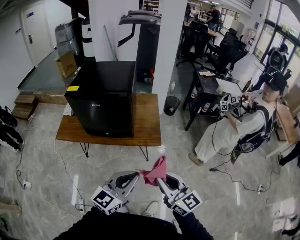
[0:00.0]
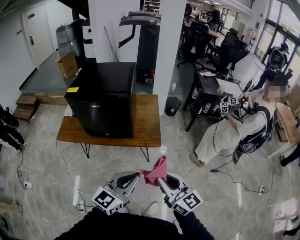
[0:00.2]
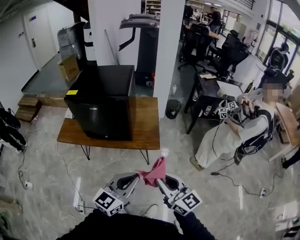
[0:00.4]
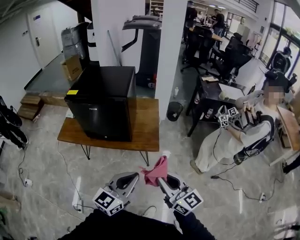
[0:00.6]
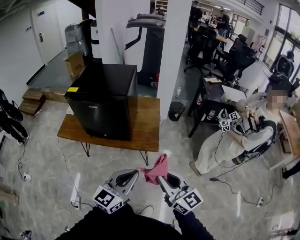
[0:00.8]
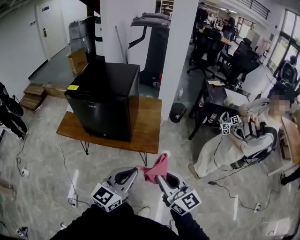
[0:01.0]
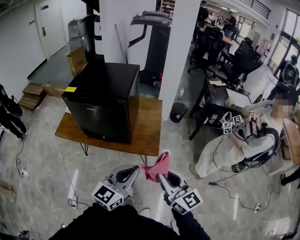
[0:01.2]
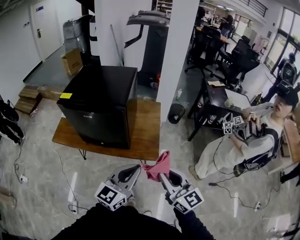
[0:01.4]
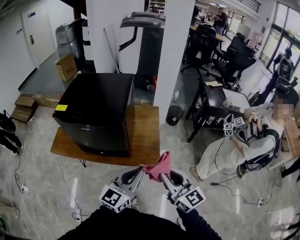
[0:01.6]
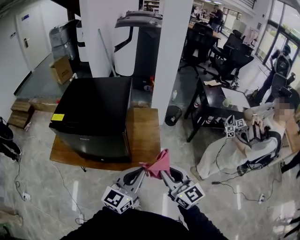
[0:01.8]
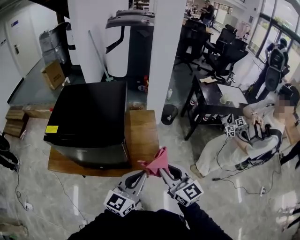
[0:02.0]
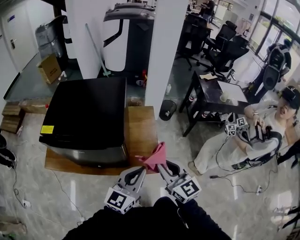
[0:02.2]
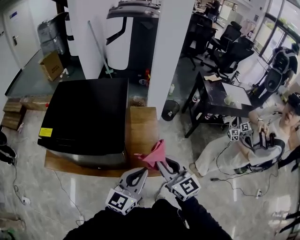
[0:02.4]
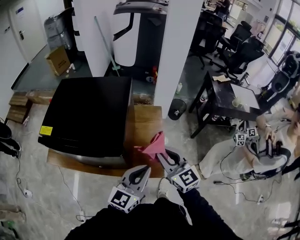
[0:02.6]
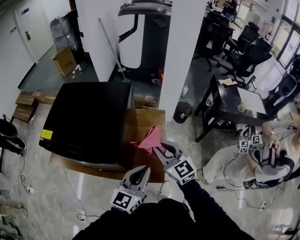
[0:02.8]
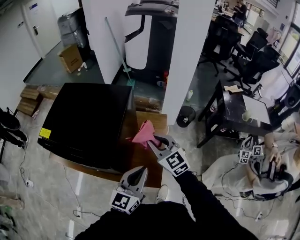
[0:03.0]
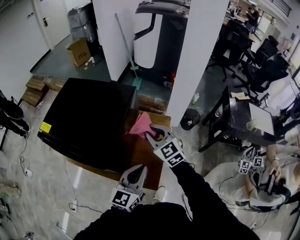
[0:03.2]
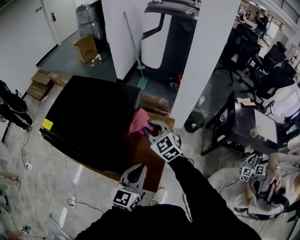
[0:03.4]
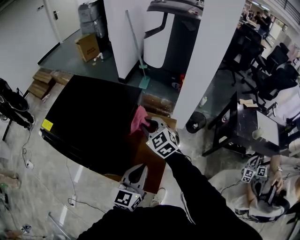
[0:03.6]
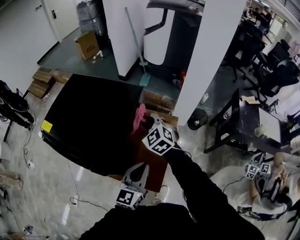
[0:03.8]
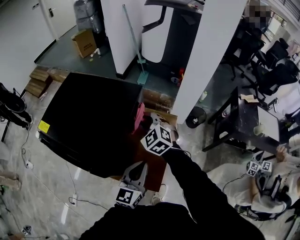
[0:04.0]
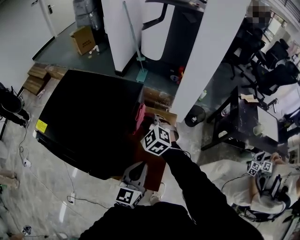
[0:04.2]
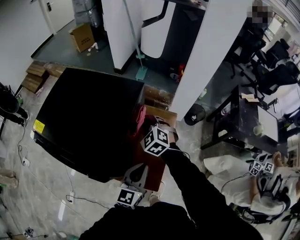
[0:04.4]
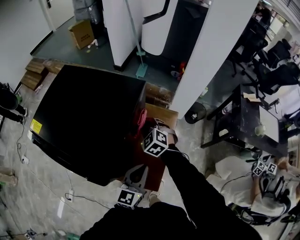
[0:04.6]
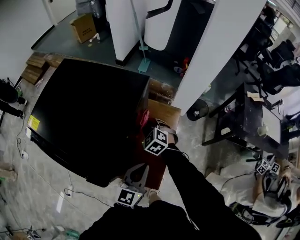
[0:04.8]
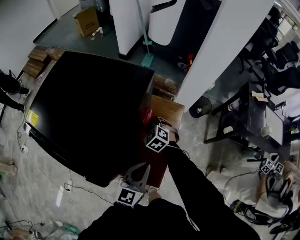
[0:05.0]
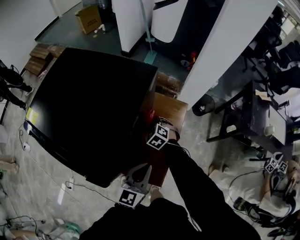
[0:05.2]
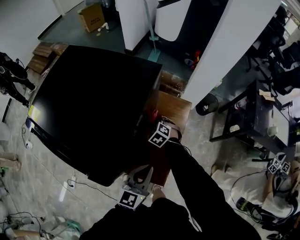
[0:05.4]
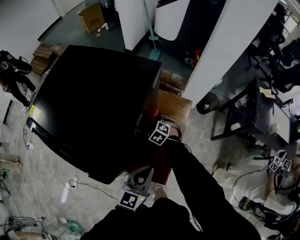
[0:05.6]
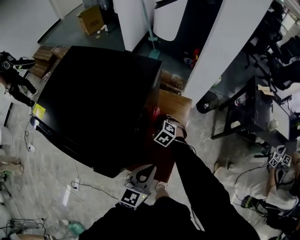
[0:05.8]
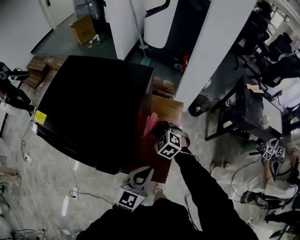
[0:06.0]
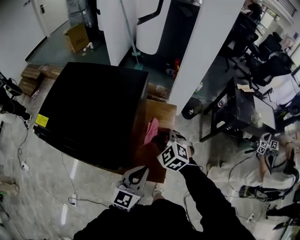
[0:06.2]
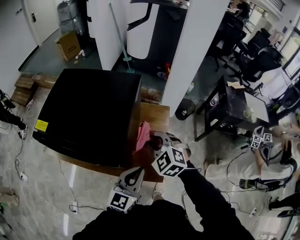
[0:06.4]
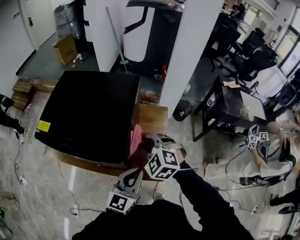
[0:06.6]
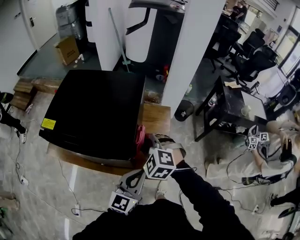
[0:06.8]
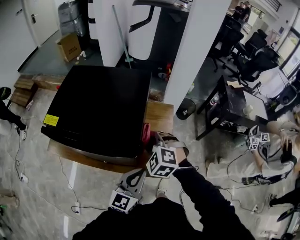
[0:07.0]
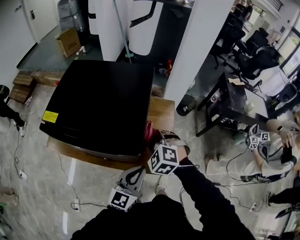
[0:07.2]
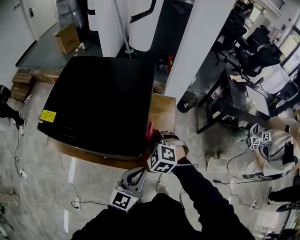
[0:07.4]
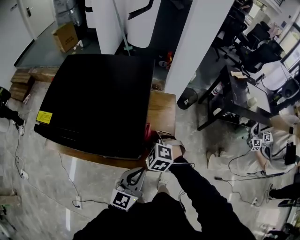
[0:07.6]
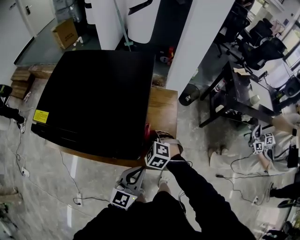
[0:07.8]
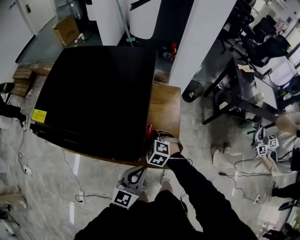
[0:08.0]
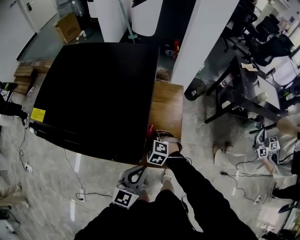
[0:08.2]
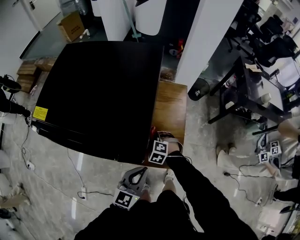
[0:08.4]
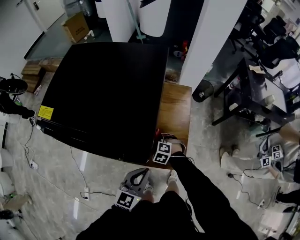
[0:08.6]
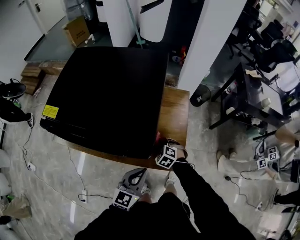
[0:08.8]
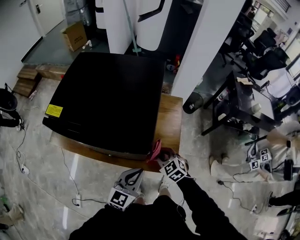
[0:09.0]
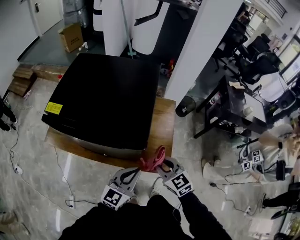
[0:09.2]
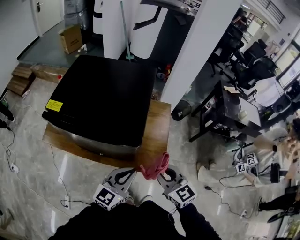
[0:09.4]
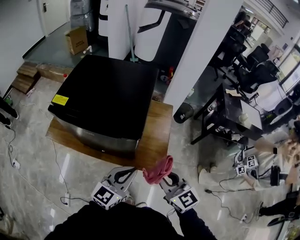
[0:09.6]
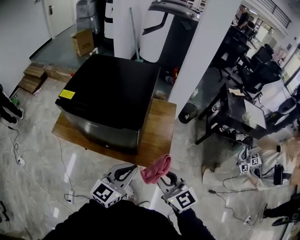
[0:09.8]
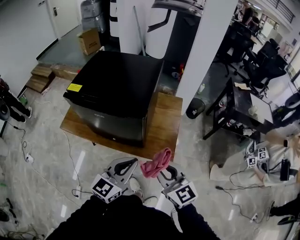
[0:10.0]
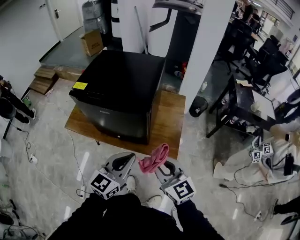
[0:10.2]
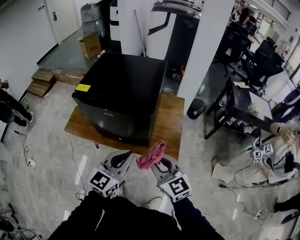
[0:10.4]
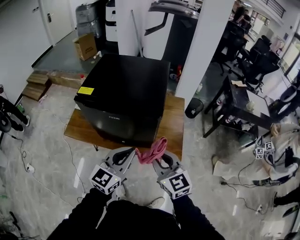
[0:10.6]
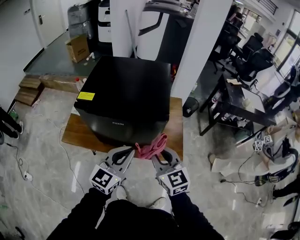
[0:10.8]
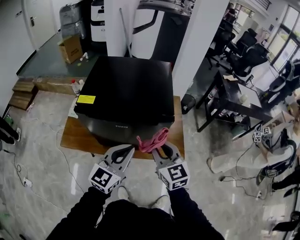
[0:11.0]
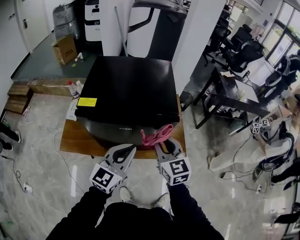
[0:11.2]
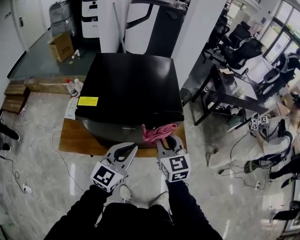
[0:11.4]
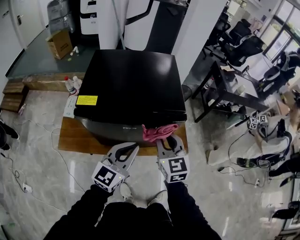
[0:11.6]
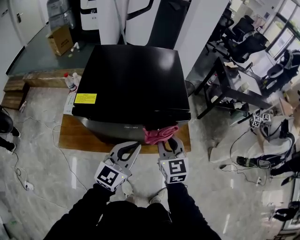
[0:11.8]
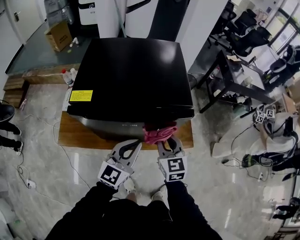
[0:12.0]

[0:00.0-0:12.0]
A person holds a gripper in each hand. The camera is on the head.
0:00.0 to 0:01.6: Both grippers travel together forward, about 20 cm.
0:01.6 to 0:03.0: The right gripper heads forward, covering roughly 40 cm, and turns by roughly 30 degrees, while the left gripper goes about 25 cm forward.
0:03.0 to 0:04.4: The left gripper travels downward and forward by about 15 cm. The right gripper moves forward and downward, approximately 20 cm, and turns by about 30 degrees.
0:04.4 to 0:06.0: The right gripper travels downward and backward by approximately 10 cm, while the left gripper moves backward, approximately 5 cm.
0:06.0 to 0:07.6: The right gripper goes roughly 15 cm backward and to the left, and reaches roughly 15 cm upward, then returns. Meanwhile the left gripper travels to the left and backward by roughly 10 cm.
0:07.6 to 0:09.0: The right gripper travels backward by approximately 5 cm, goes downward and returns, some 20 cm each way, and turns by some 30 degrees.
0:09.0 to 0:10.4: The left gripper moves upward and backward, roughly 20 cm. The right gripper heads upward and backward, covering roughly 35 cm, and tips its fingers upward by some 30 degrees.
0:10.4 to 0:12.0: The two grippers go some 20 cm to the left, forward and downward. The right gripper rotates some 30 degrees.

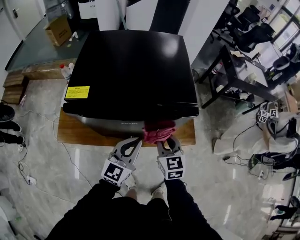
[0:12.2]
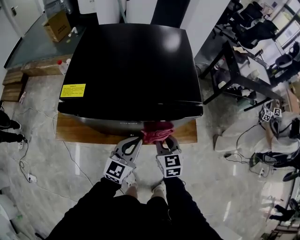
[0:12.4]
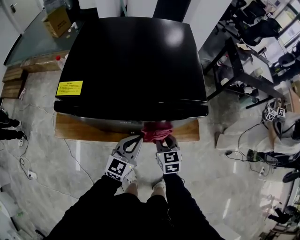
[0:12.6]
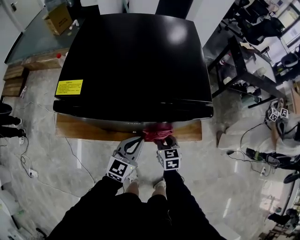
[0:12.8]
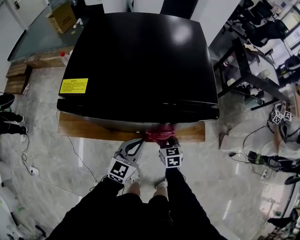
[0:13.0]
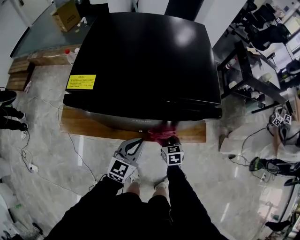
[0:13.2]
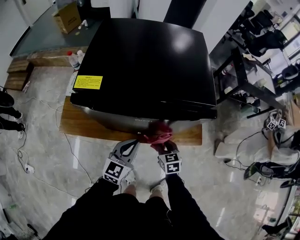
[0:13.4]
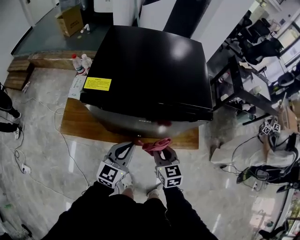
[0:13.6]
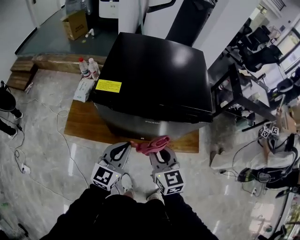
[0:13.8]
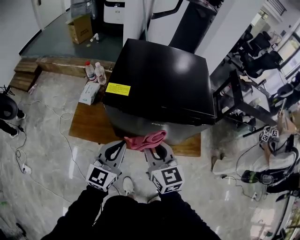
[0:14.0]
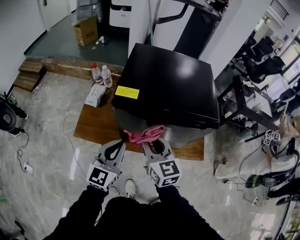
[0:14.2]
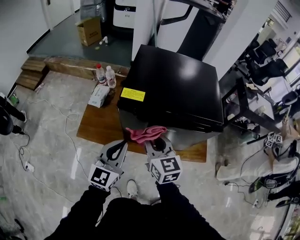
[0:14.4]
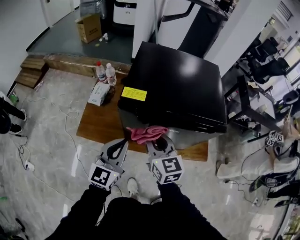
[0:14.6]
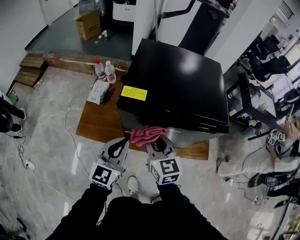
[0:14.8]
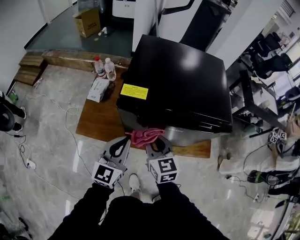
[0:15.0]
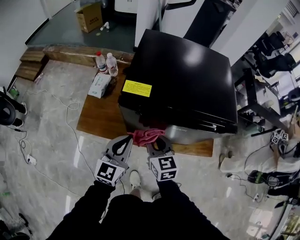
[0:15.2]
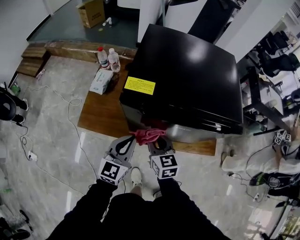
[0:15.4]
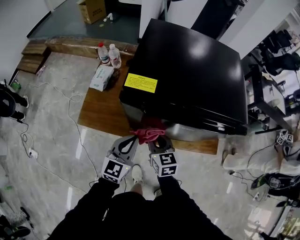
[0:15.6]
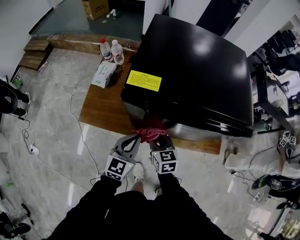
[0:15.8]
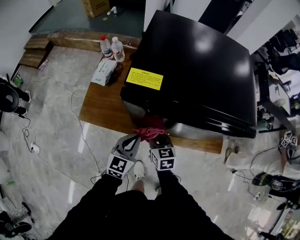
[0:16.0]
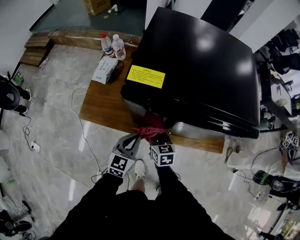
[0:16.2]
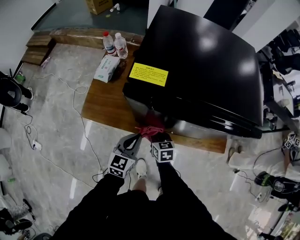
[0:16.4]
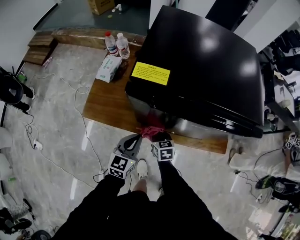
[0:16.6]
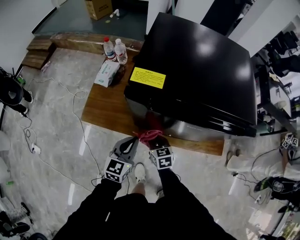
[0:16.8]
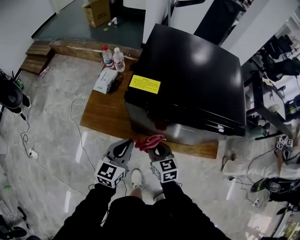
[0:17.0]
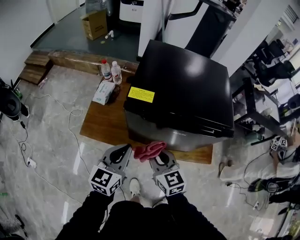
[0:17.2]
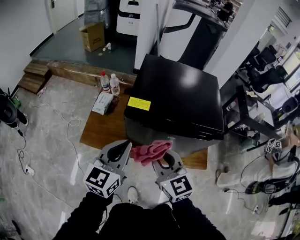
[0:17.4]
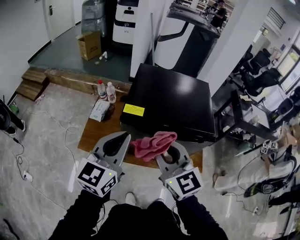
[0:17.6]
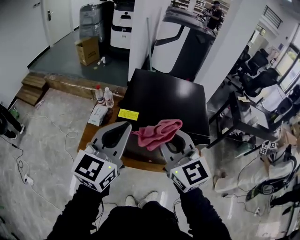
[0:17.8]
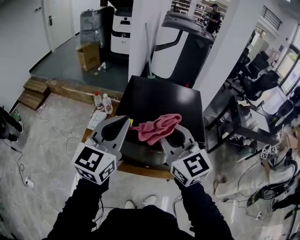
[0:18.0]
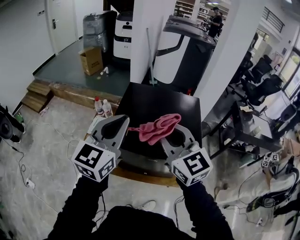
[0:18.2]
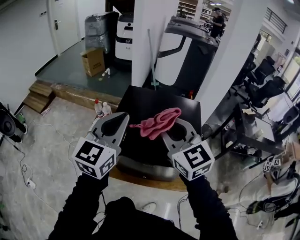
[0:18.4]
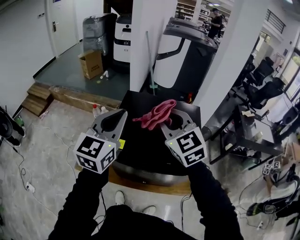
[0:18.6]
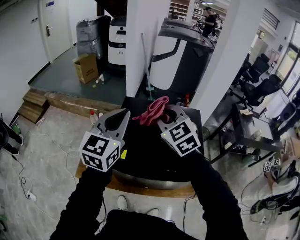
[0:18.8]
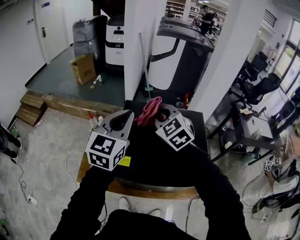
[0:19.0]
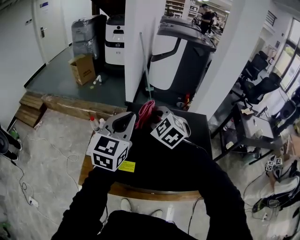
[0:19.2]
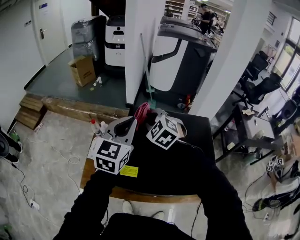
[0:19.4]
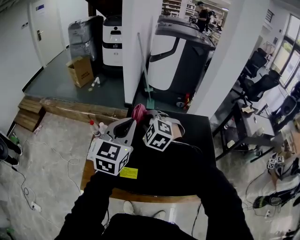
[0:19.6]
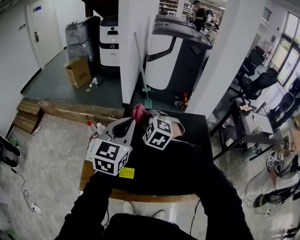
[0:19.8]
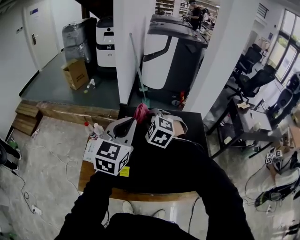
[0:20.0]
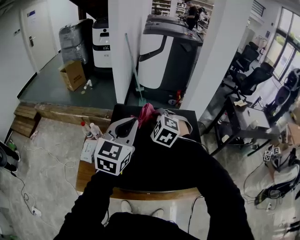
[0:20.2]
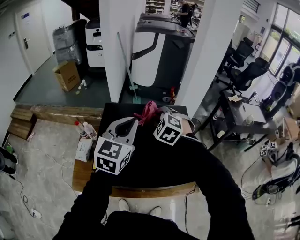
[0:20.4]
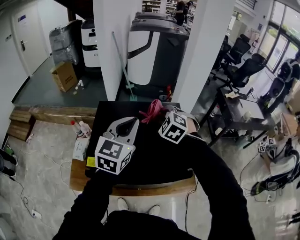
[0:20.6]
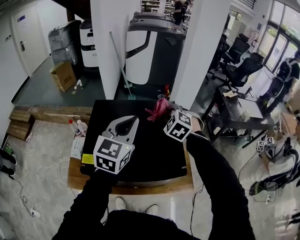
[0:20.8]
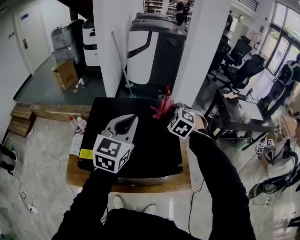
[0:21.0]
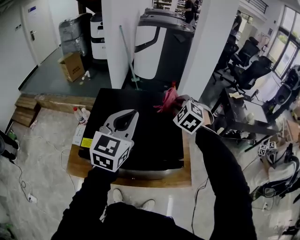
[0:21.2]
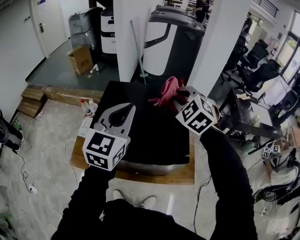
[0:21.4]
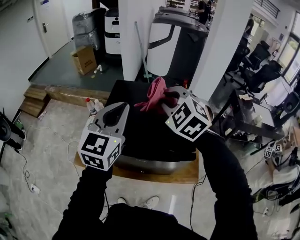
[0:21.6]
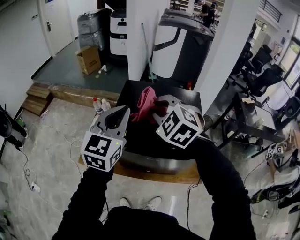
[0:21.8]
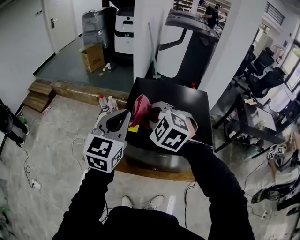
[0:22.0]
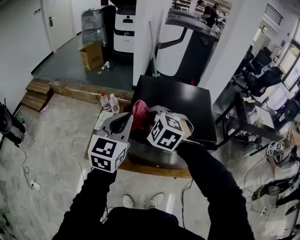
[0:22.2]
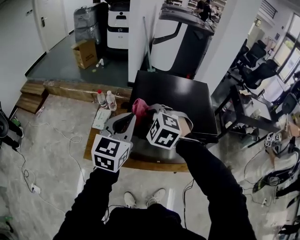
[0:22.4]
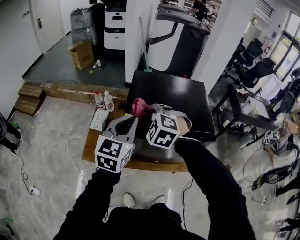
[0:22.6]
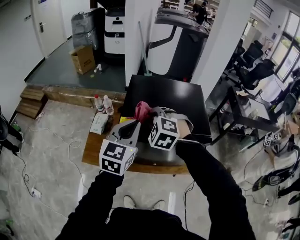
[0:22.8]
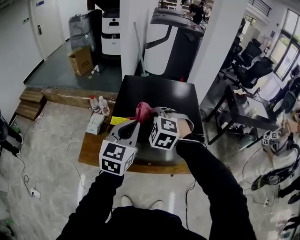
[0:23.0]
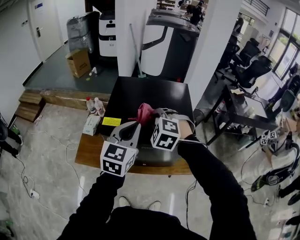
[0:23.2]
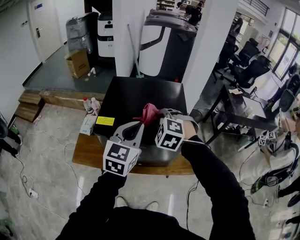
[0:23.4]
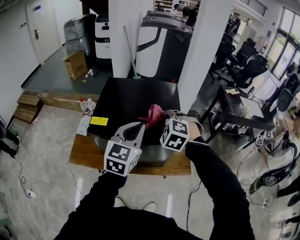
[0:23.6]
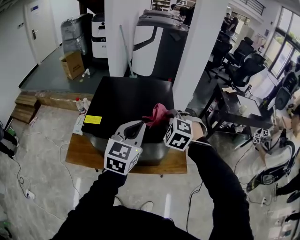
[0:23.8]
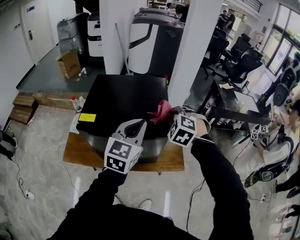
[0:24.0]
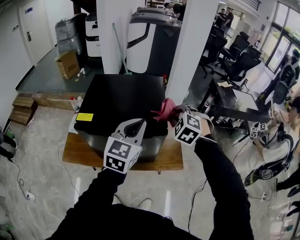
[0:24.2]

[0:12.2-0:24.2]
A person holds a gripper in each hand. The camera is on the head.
0:12.2 to 0:13.8: The two grippers go about 15 cm to the left and backward. The right gripper goes downward and returns, roughly 25 cm each way. Meanwhile the left gripper moves about 10 cm downward and comes back.
0:13.8 to 0:15.2: The right gripper moves to the left, forward and downward, about 15 cm, while the left gripper heads to the left, covering roughly 10 cm.
0:15.2 to 0:16.6: The left gripper goes roughly 15 cm downward, while the right gripper moves downward, approximately 25 cm, and turns by approximately 20 degrees.
0:16.6 to 0:18.2: The grippers both shift upward by approximately 50 cm. The right gripper points its fingers some 40 degrees further upward. The left gripper changes its angle by some 30 degrees.
0:18.2 to 0:19.8: The right gripper goes approximately 35 cm forward and downward, and tilts its fingers some 40 degrees downward, while the left gripper heads forward, covering some 25 cm.
0:19.8 to 0:21.2: The right gripper shifts roughly 30 cm to the right. Meanwhile the left gripper travels to the right and backward by roughly 20 cm.
0:21.2 to 0:22.6: The left gripper shifts roughly 25 cm to the left and backward. Meanwhile the right gripper heads to the left and backward, covering roughly 40 cm.
0:22.6 to 0:24.2: Both grippers travel together to the right, about 35 cm.
